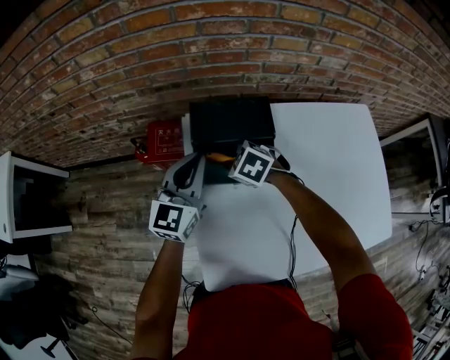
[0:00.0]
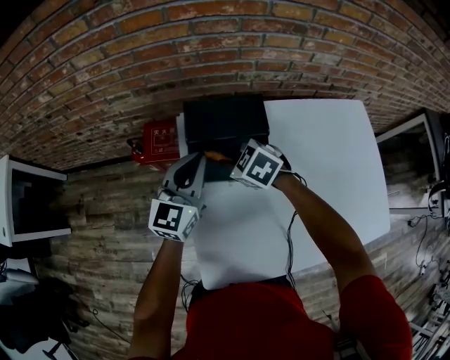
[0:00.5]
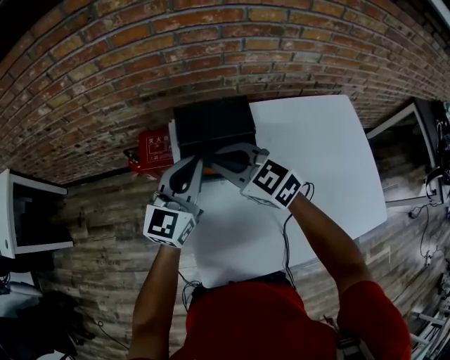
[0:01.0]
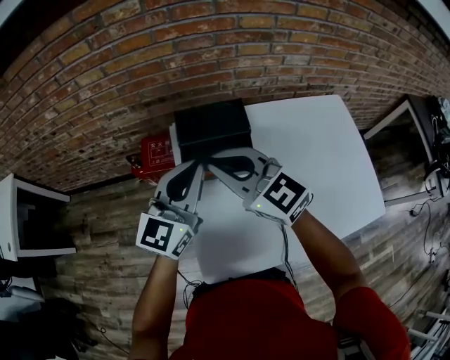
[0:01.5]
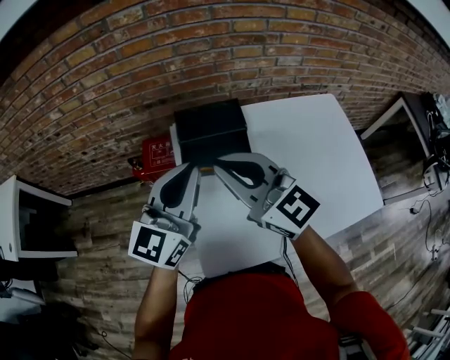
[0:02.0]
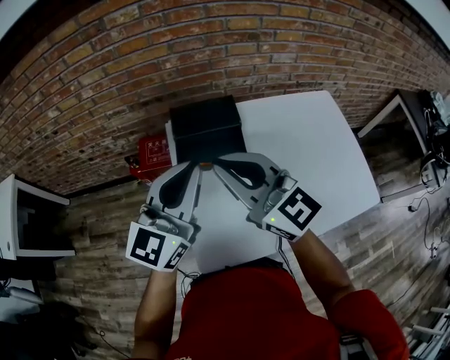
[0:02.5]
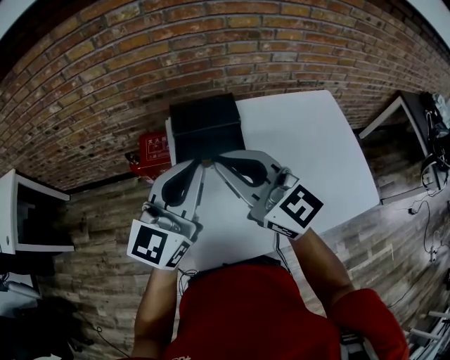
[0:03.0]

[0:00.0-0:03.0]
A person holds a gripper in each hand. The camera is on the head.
0:00.0 to 0:01.5: The left gripper goes about 15 cm upward and backward. Meanwhile the right gripper heads upward, covering roughly 25 cm, and tilts its fingers approximately 50 degrees upward.
0:01.5 to 0:03.0: The grippers both shift backward and upward by about 10 cm.

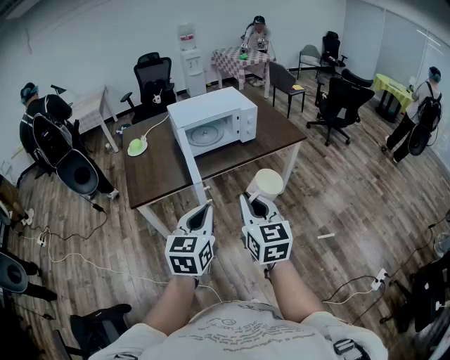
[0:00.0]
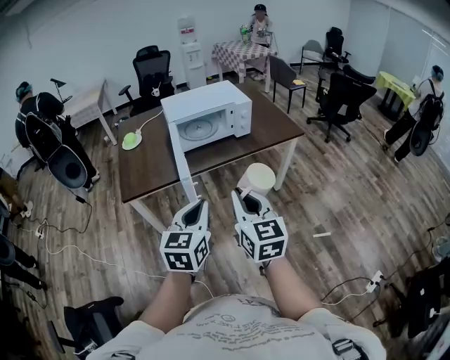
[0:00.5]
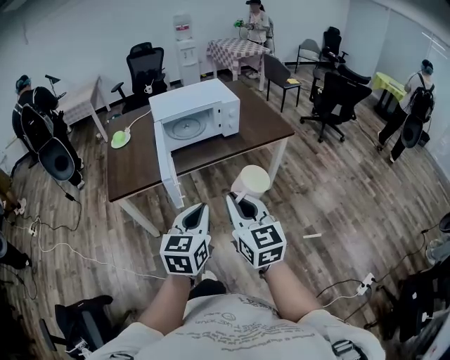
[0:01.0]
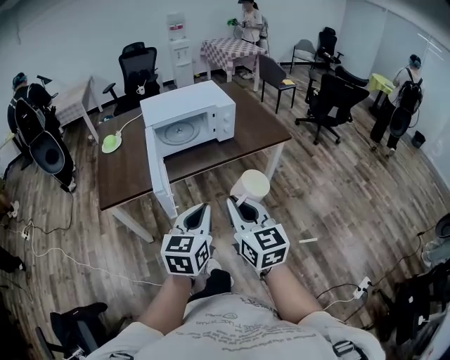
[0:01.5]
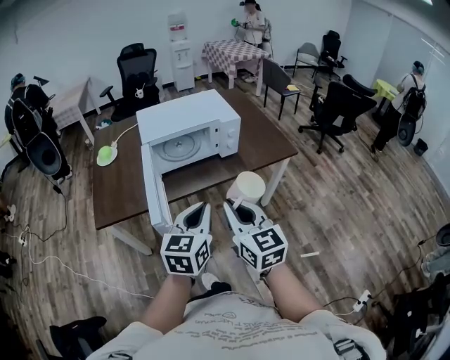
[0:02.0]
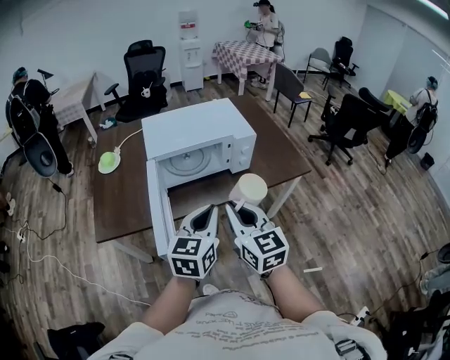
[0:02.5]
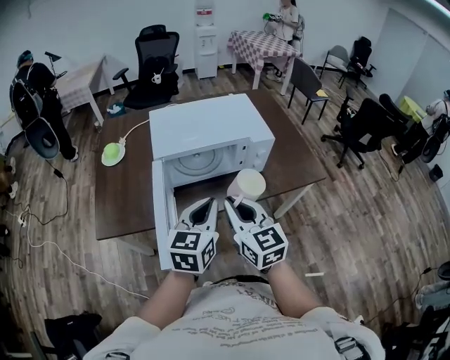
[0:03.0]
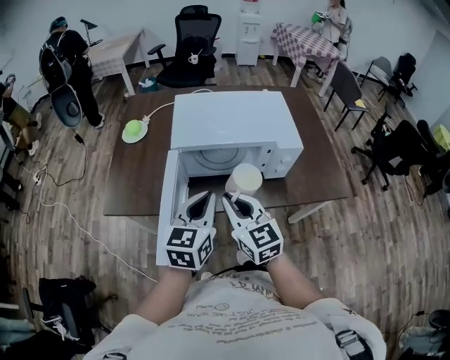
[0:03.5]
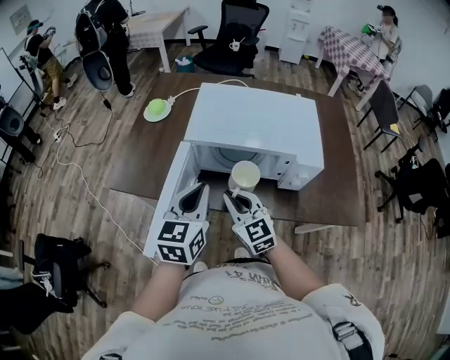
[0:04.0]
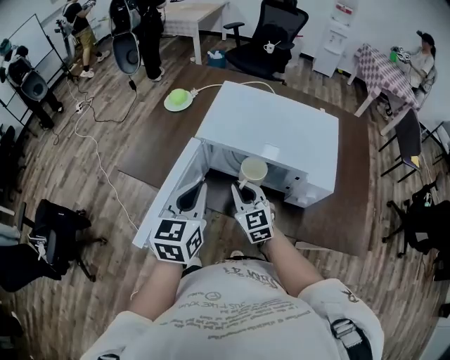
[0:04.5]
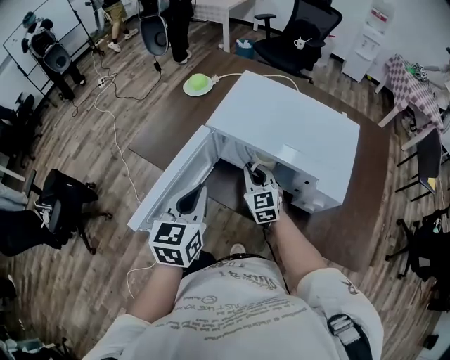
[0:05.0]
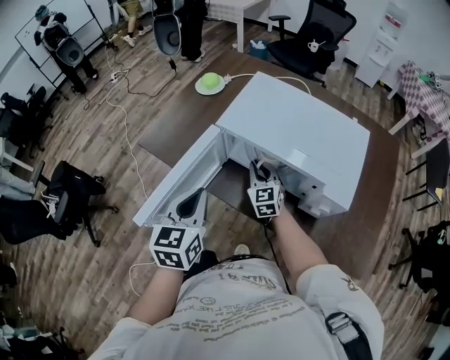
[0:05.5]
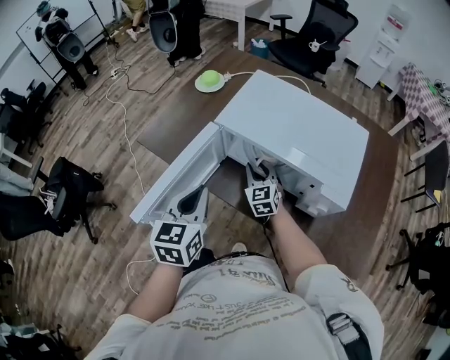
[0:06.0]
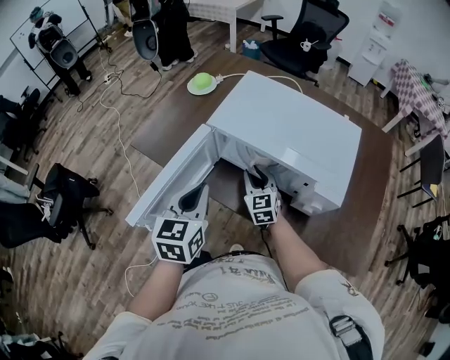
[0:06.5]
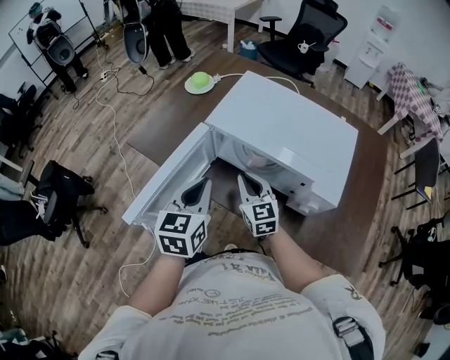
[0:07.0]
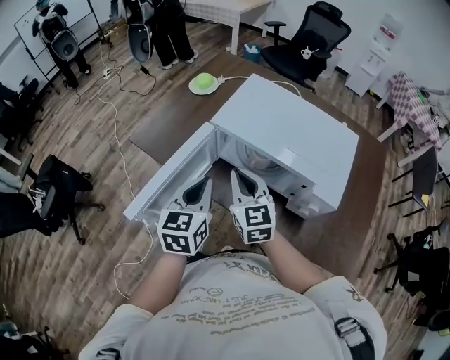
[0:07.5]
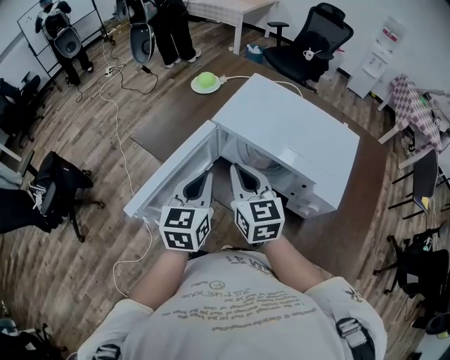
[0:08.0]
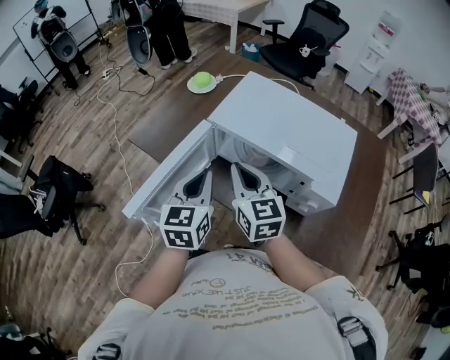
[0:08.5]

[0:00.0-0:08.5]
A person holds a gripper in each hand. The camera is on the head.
0:00.0 to 0:02.0: The two grippers go about 20 cm forward and to the right.
0:02.0 to 0:04.0: The left gripper shifts by about 25 cm, and rotates approximately 30 degrees. Meanwhile the right gripper moves approximately 30 cm, and swivels roughly 40 degrees.
0:04.0 to 0:06.5: The right gripper heads forward, downward and to the right, covering approximately 15 cm, while the left gripper swivels about 20 degrees.
0:06.5 to 0:08.5: The right gripper heads upward, covering approximately 15 cm, and closes its fingers.

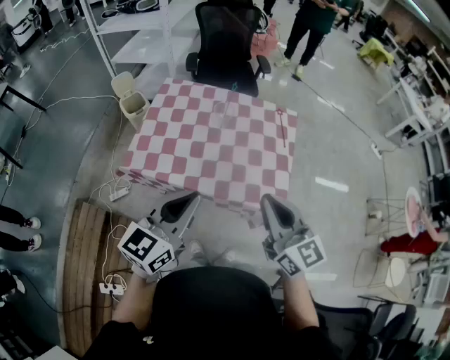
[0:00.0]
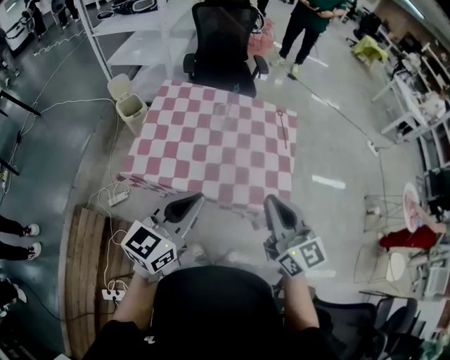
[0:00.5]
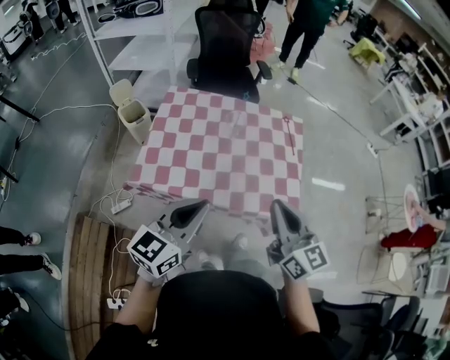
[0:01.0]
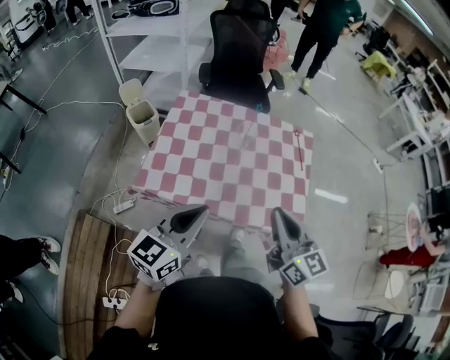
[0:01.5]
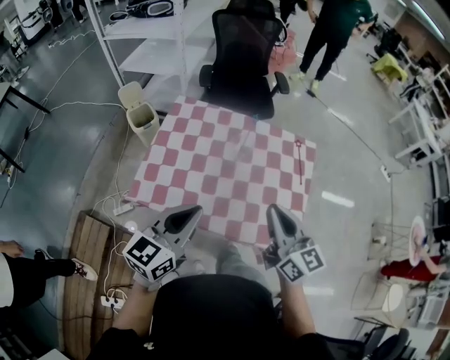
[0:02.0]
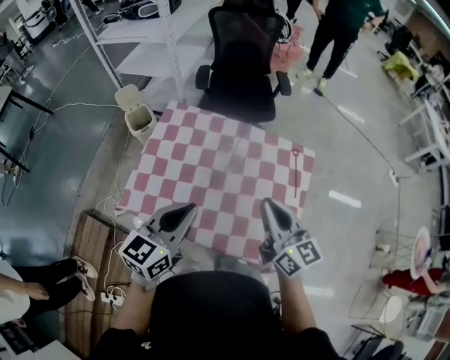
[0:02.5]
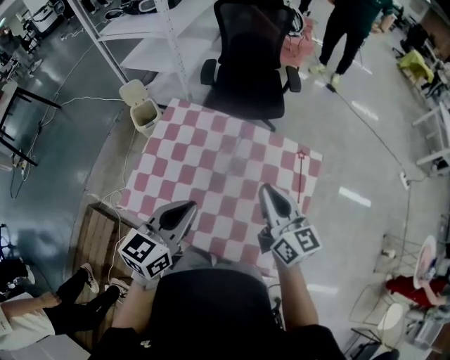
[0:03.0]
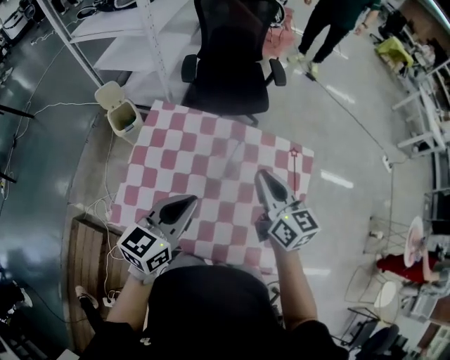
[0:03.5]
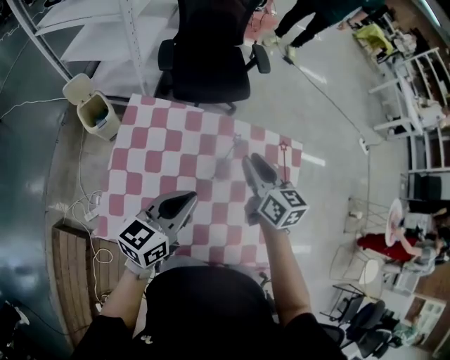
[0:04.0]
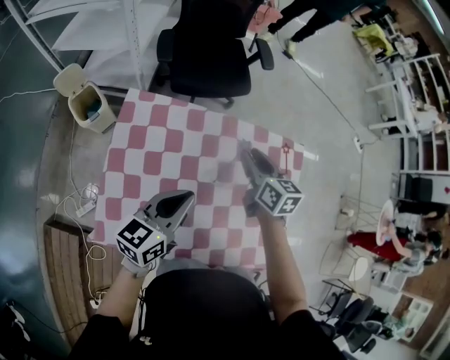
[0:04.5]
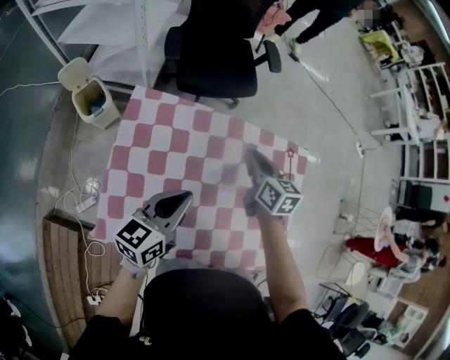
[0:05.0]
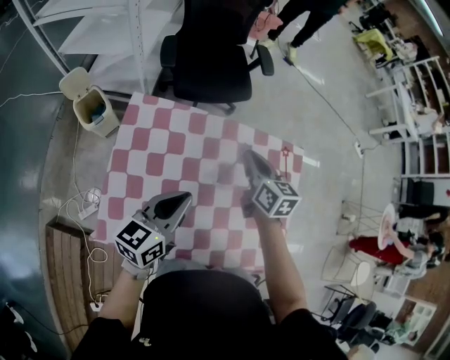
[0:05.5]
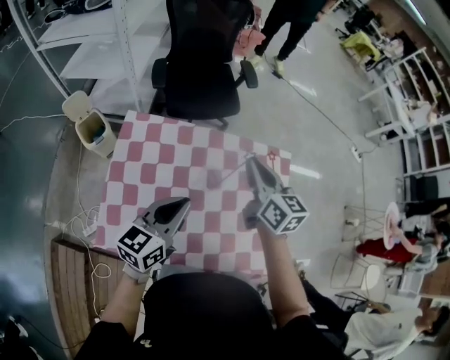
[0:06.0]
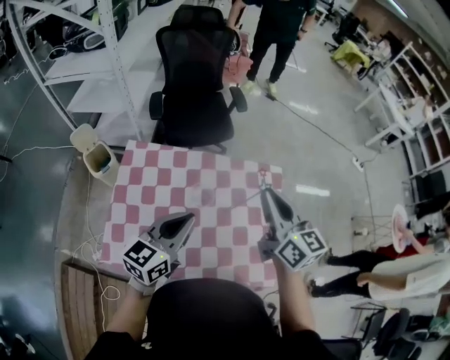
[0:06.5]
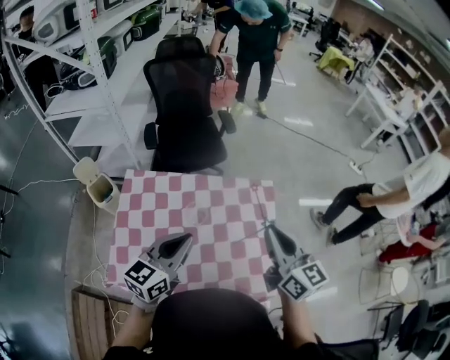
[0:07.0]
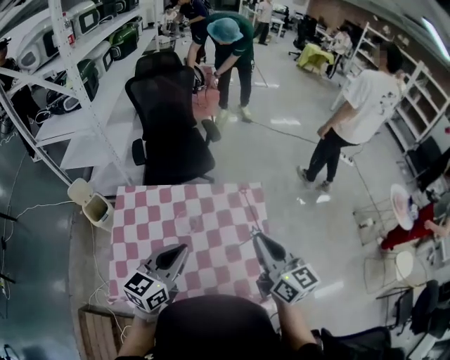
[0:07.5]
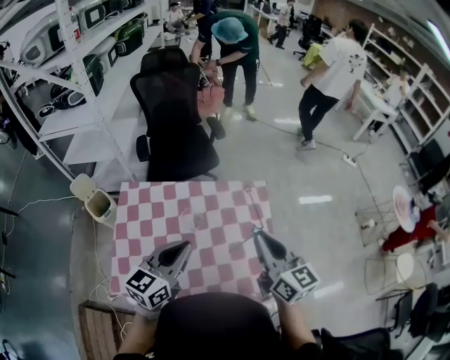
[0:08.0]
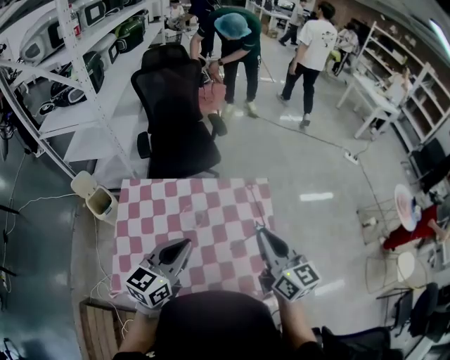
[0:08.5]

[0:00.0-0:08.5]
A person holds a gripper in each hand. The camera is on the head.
0:00.0 to 0:02.0: The left gripper shifts some 15 cm forward and to the left, while the right gripper goes approximately 15 cm forward.
0:02.0 to 0:04.0: Both grippers move forward, some 30 cm. The right gripper changes its angle by roughly 20 degrees, and opens up.
0:04.0 to 0:06.5: The right gripper travels upward, to the right and backward by about 20 cm, and closes its fingers, while the left gripper heads upward and to the right, covering roughly 10 cm.
0:06.5 to 0:08.5: The right gripper moves backward and to the right, about 10 cm. The left gripper shifts by approximately 5 cm.

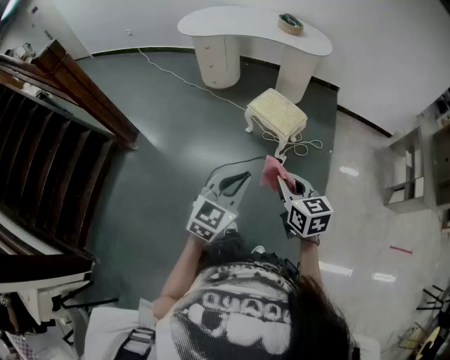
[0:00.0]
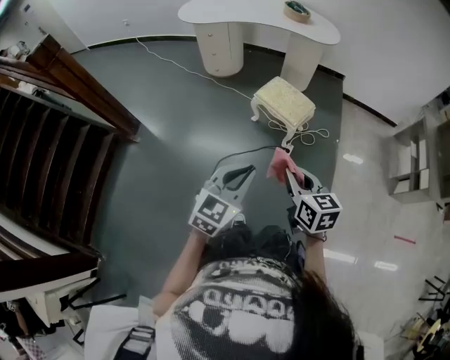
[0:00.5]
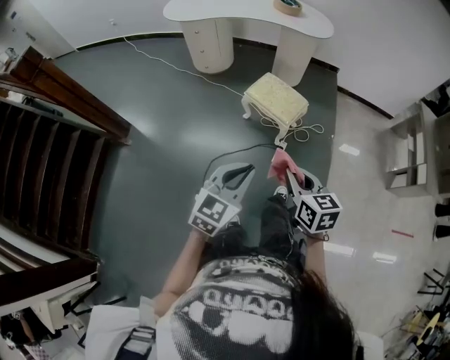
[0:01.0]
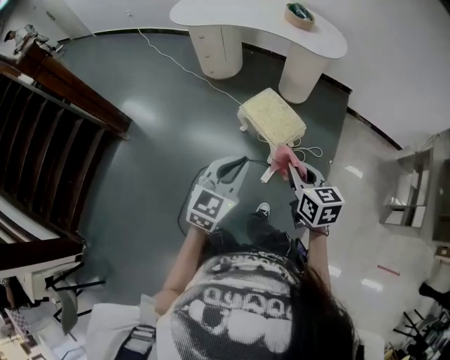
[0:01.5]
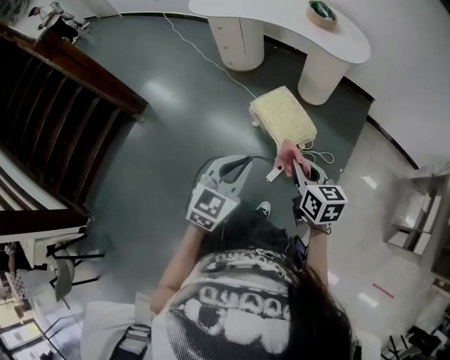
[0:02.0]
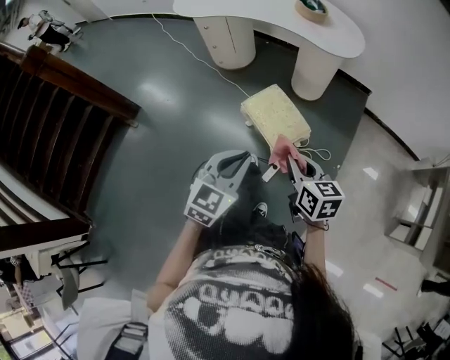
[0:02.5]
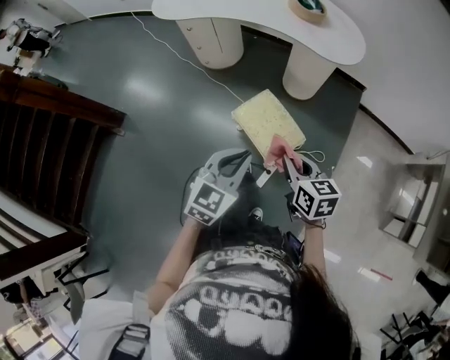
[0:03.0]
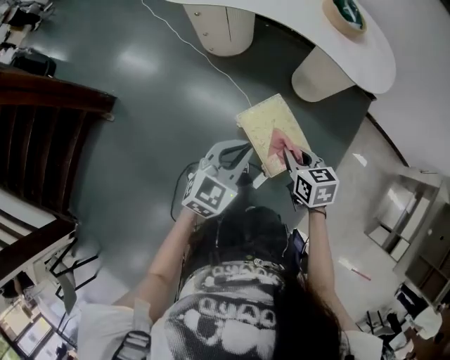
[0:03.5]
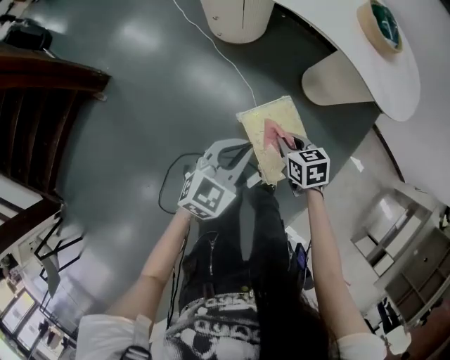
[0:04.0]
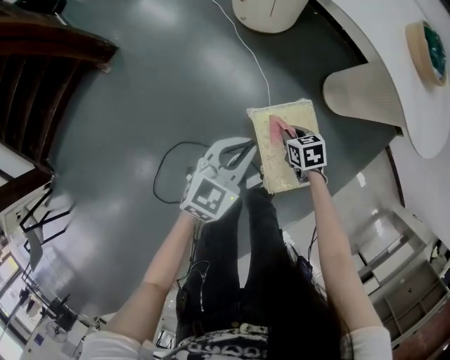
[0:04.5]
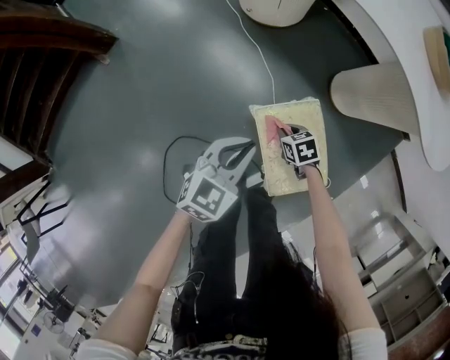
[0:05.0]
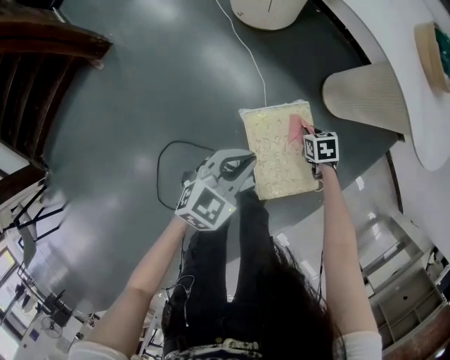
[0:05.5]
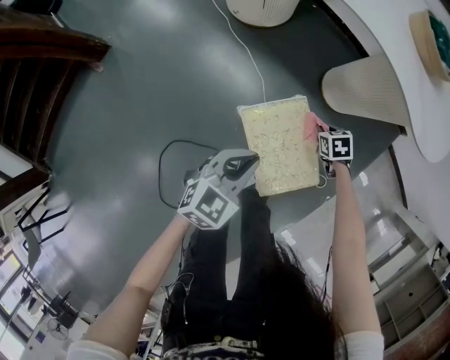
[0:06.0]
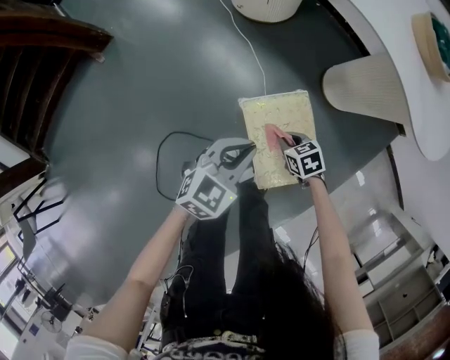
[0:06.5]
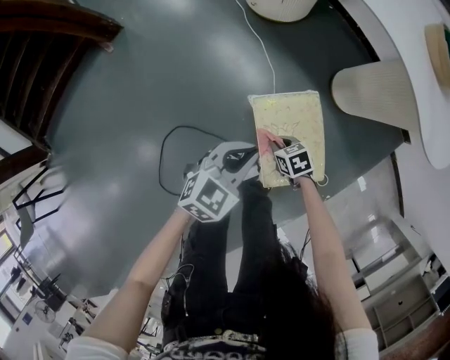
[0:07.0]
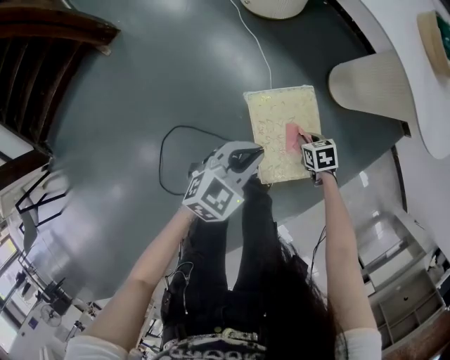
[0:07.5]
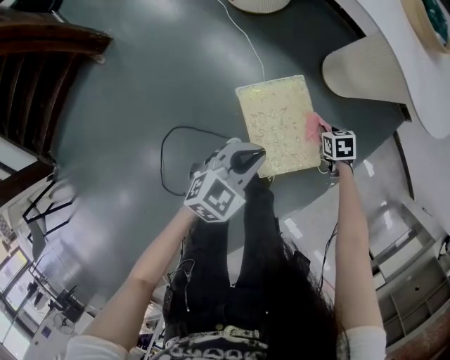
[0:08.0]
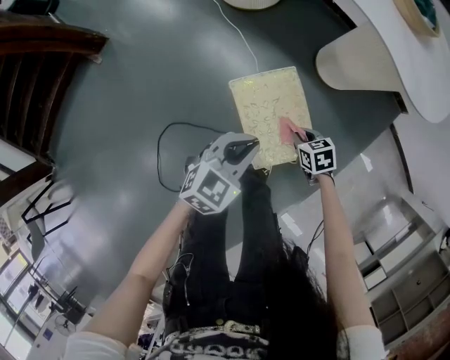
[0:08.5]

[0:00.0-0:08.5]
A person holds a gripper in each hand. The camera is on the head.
0:00.0 to 0:02.0: Both grippers travel together forward and to the right, some 35 cm.
0:02.0 to 0:04.0: Both grippers travel together forward and downward, approximately 50 cm. The right gripper turns by roughly 30 degrees.
0:04.0 to 0:06.5: The right gripper travels downward by about 20 cm, and swivels approximately 20 degrees; the left gripper goes approximately 15 cm downward.
0:06.5 to 0:08.5: The right gripper moves left and right over approximately 25 cm, changing direction 2 times; the left gripper shifts roughly 10 cm backward and to the right.
